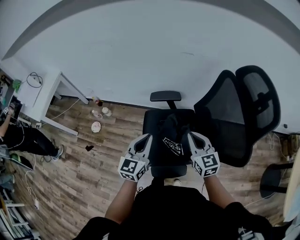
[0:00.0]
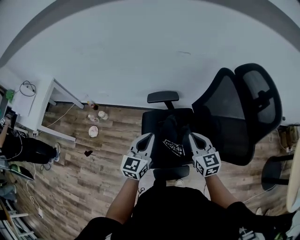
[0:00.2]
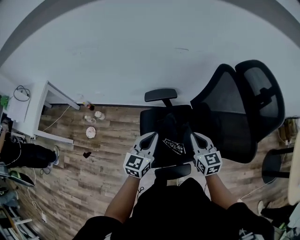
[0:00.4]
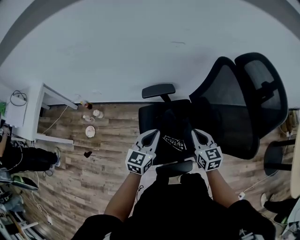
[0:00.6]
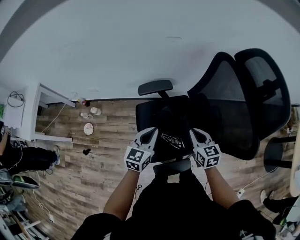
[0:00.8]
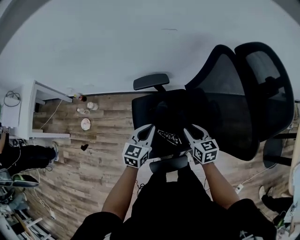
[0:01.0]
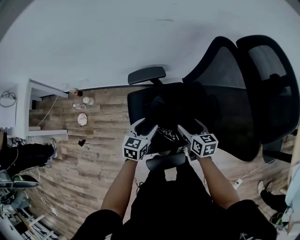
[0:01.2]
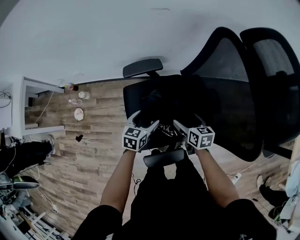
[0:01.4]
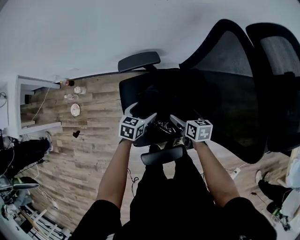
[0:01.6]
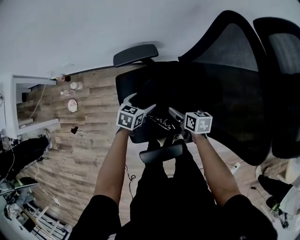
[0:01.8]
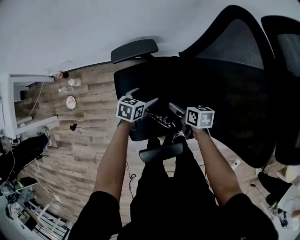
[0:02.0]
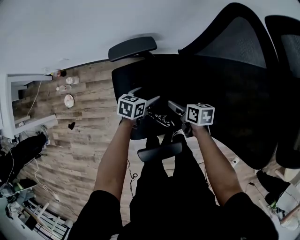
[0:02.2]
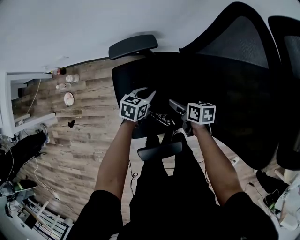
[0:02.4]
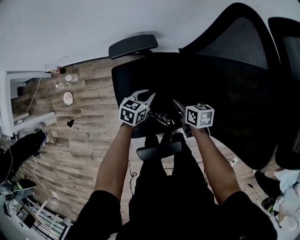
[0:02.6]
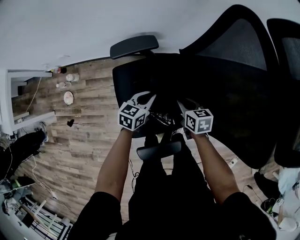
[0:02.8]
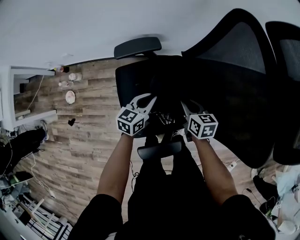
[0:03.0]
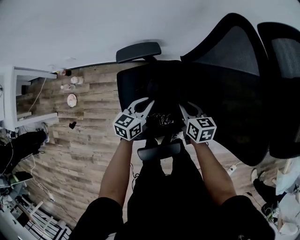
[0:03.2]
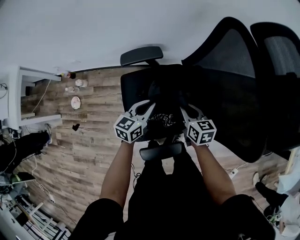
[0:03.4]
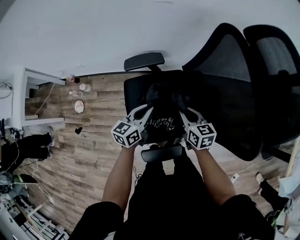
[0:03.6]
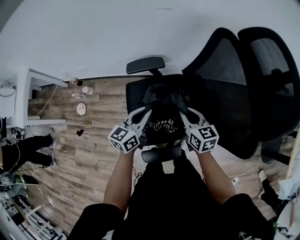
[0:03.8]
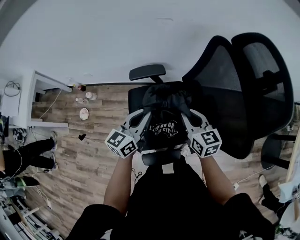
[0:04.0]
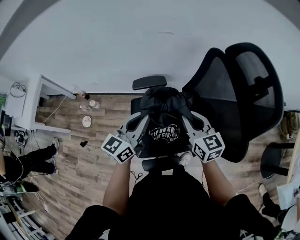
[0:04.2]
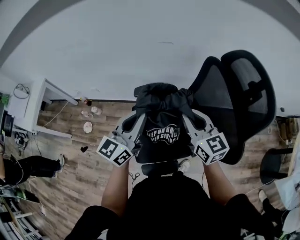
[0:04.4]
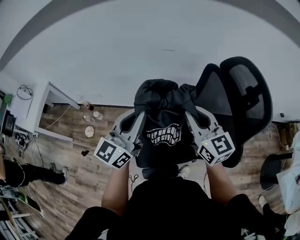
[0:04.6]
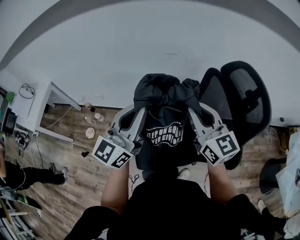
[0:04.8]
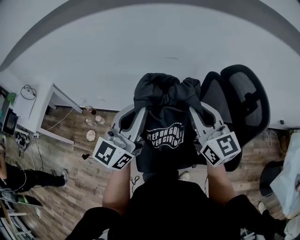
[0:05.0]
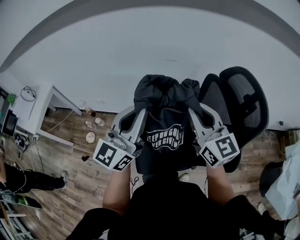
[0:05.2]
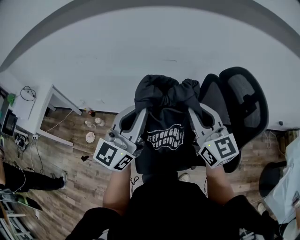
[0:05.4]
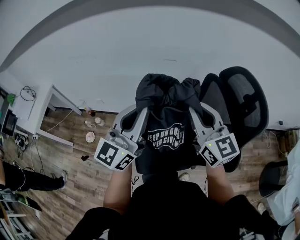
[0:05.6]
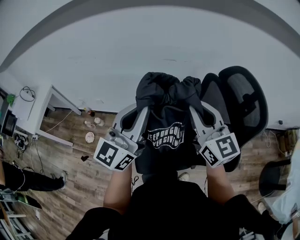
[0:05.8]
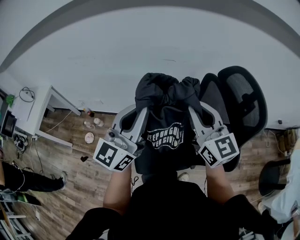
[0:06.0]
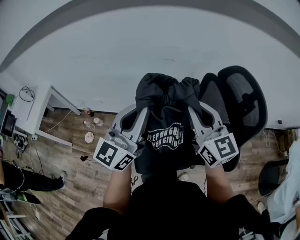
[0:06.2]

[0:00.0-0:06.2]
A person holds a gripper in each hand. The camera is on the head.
0:00.0 to 0:01.6: The right gripper heads downward, covering about 25 cm, rotates some 50 degrees, and opens up. Meanwhile the left gripper shifts about 30 cm downward and forward, points its fingers about 30 degrees further downward, and opens its fingers.
0:01.6 to 0:03.2: The left gripper ends up some 5 cm from where it was, turns by approximately 20 degrees, and closes, while the right gripper closes.
0:03.2 to 0:04.6: Both grippers move upward, about 35 cm. The right gripper angles its fingers upward, by about 40 degrees. The left gripper points its fingers approximately 30 degrees further upward.
0:04.6 to 0:06.2: Both grippers move upward, about 5 cm.

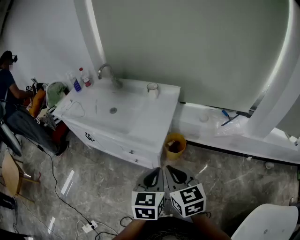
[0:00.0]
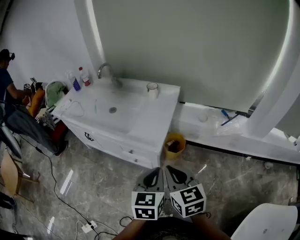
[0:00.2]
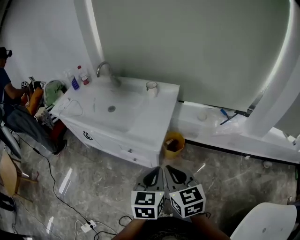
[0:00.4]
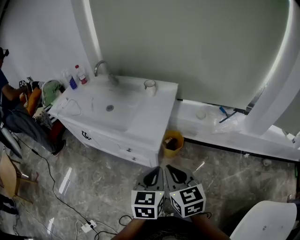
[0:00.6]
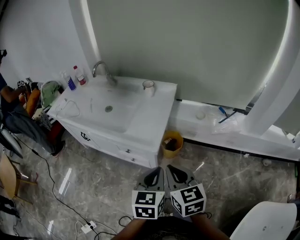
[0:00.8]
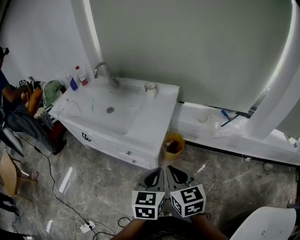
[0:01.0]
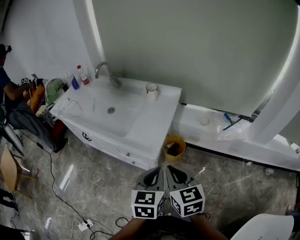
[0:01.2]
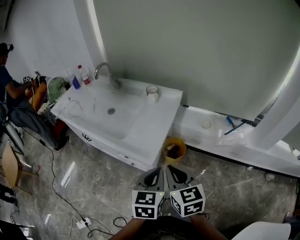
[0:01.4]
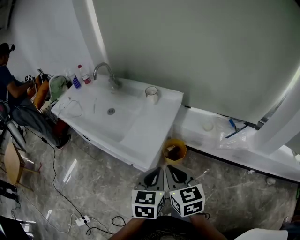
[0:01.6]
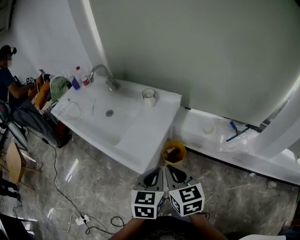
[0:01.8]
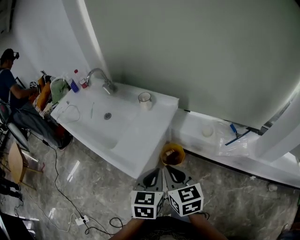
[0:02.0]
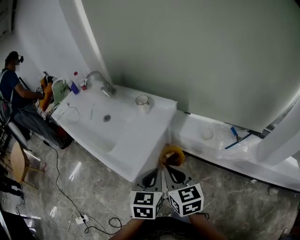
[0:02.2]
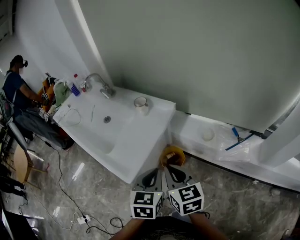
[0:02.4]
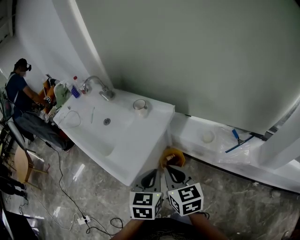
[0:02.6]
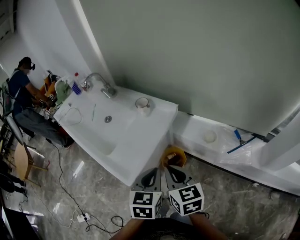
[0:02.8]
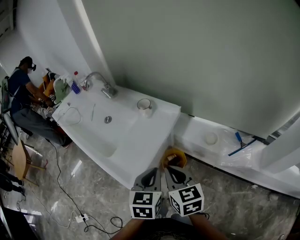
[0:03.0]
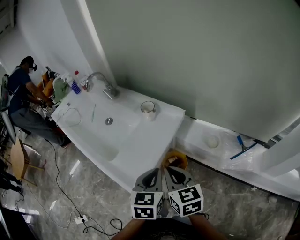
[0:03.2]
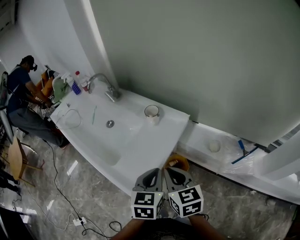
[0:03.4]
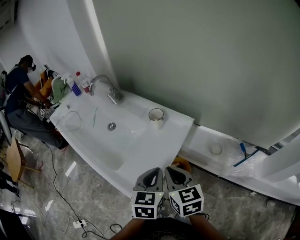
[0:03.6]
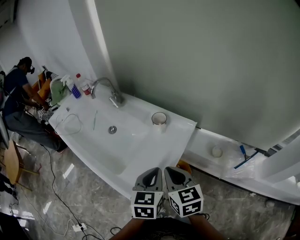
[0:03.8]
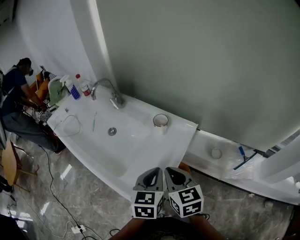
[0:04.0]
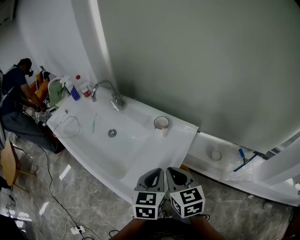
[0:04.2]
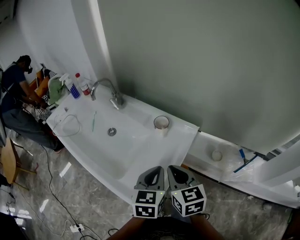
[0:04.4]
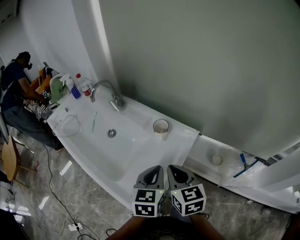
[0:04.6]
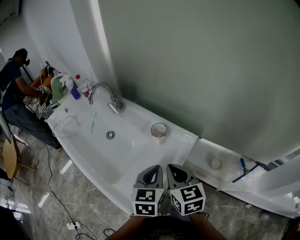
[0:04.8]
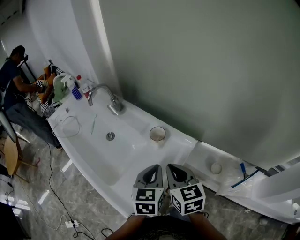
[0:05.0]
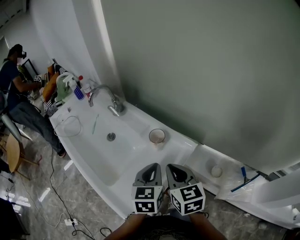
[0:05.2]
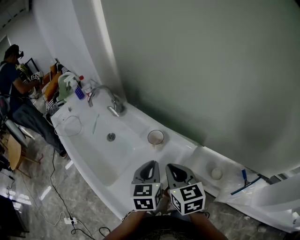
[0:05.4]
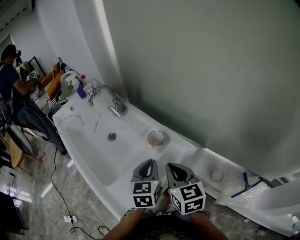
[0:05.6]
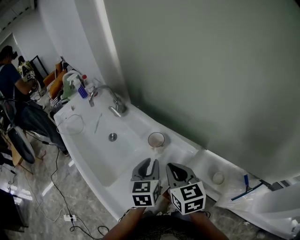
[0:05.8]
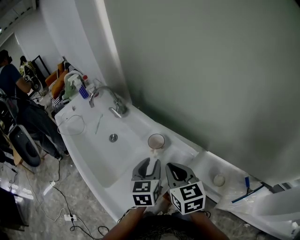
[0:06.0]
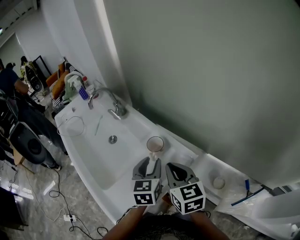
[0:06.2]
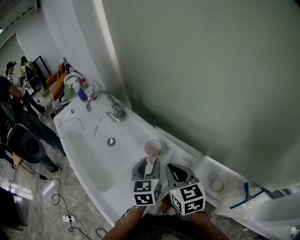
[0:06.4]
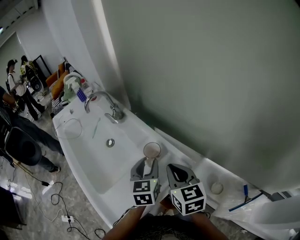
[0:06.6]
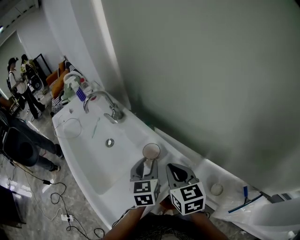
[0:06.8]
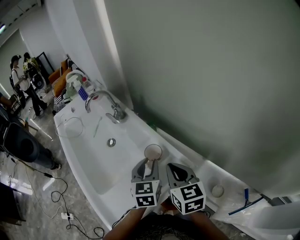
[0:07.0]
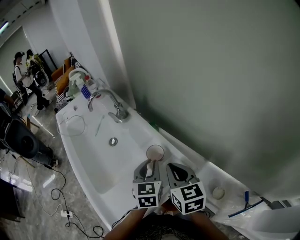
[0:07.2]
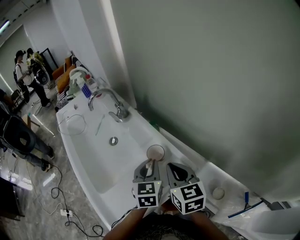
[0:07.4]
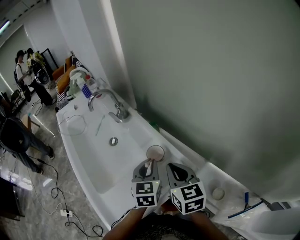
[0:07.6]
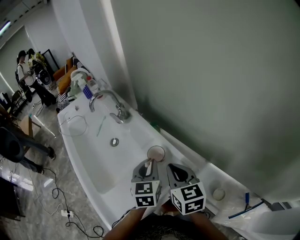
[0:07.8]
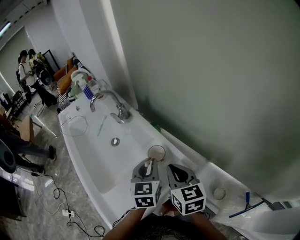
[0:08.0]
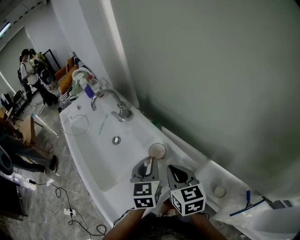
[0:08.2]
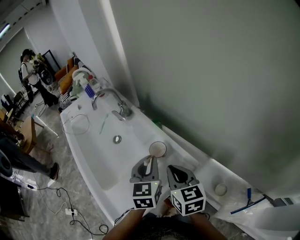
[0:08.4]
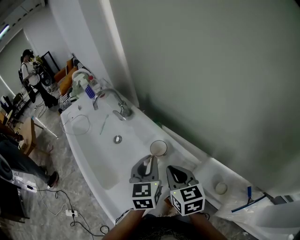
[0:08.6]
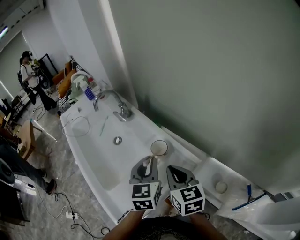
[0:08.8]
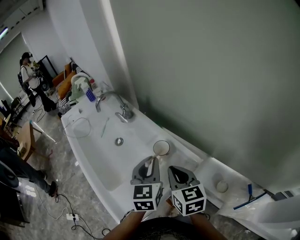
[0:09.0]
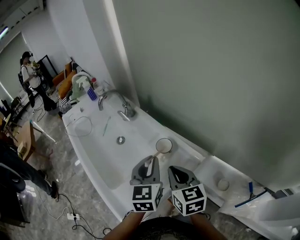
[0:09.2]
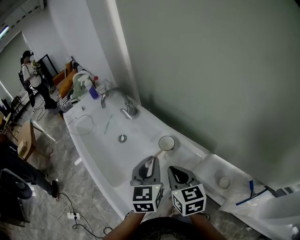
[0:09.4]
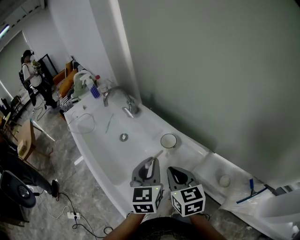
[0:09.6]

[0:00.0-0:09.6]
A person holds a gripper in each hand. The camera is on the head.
0:00.0 to 0:01.6: Both grippers travel together forward and to the right, approximately 10 cm.
0:01.6 to 0:03.2: The grippers both shift forward and to the right by about 15 cm.
0:03.2 to 0:04.8: The two grippers go some 15 cm forward.
0:04.8 to 0:06.4: The right gripper goes about 10 cm forward and to the right. The left gripper goes about 10 cm forward, and opens up.
0:06.4 to 0:08.0: The left gripper closes up.
0:08.0 to 0:09.6: The left gripper is displaced backward, upward and to the left by about 10 cm. The right gripper shifts some 10 cm to the left and backward.

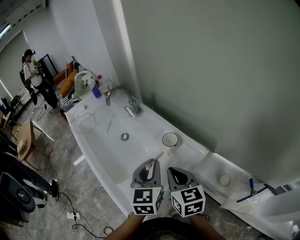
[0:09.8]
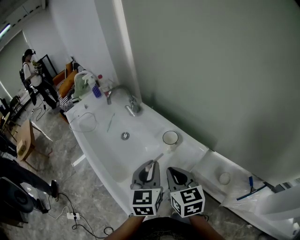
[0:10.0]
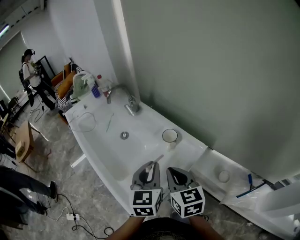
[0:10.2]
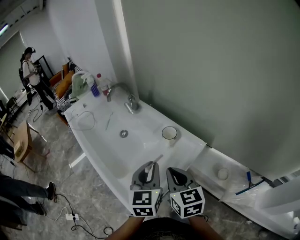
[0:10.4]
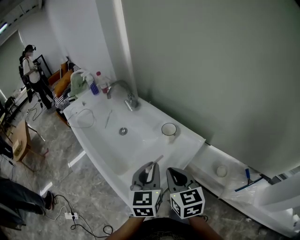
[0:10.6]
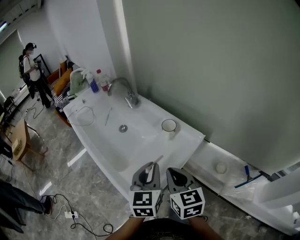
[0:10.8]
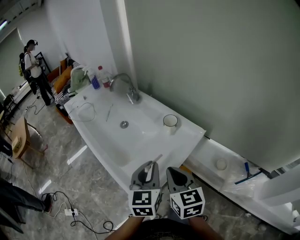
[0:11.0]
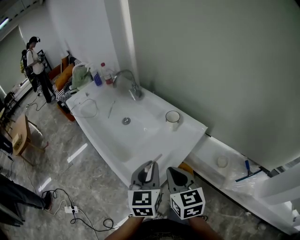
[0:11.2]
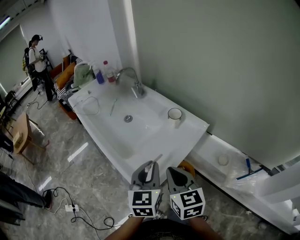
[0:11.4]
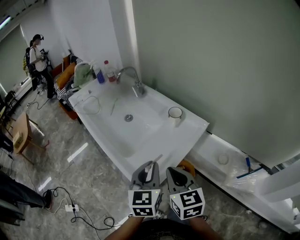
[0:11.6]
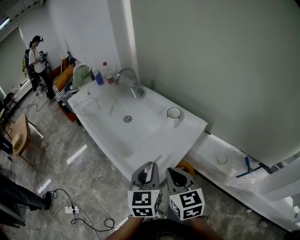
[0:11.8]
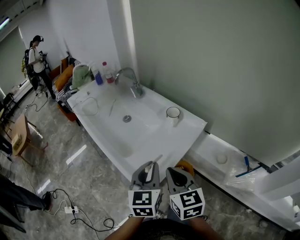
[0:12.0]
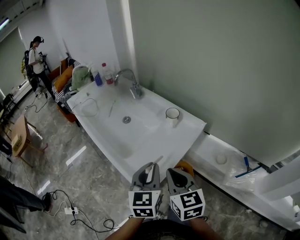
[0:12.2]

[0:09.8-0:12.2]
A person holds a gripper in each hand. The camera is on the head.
0:09.8 to 0:11.0: Both grippers move backward, roughly 10 cm.
0:11.0 to 0:12.2: Both grippers travel together backward, roughly 5 cm.

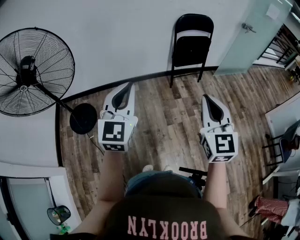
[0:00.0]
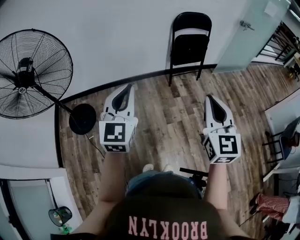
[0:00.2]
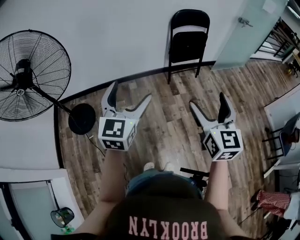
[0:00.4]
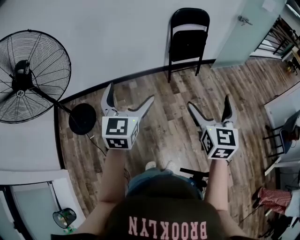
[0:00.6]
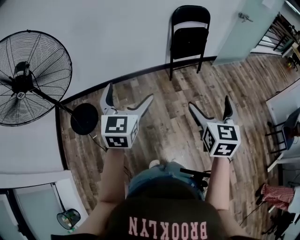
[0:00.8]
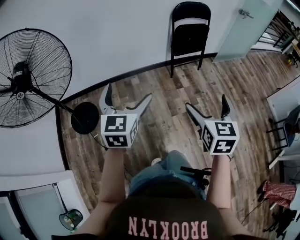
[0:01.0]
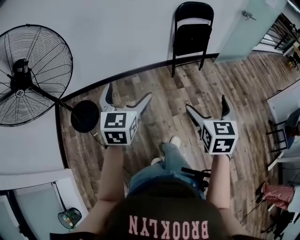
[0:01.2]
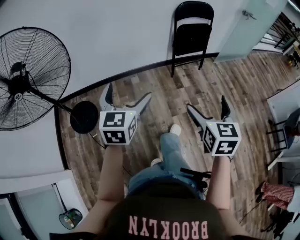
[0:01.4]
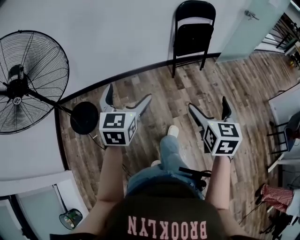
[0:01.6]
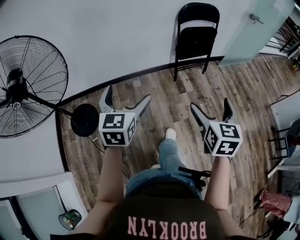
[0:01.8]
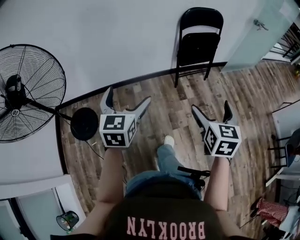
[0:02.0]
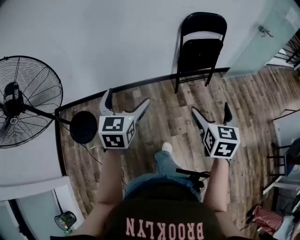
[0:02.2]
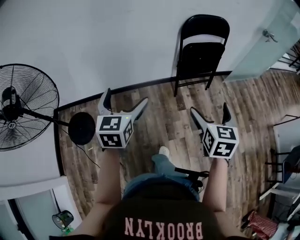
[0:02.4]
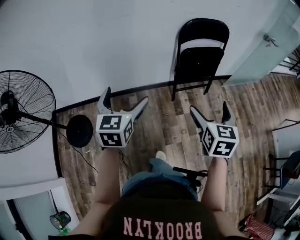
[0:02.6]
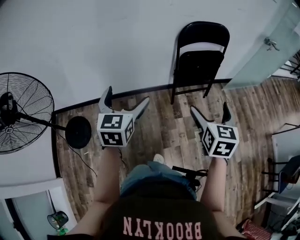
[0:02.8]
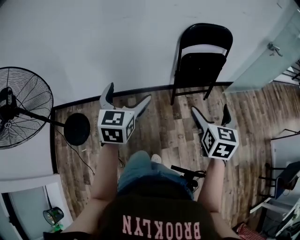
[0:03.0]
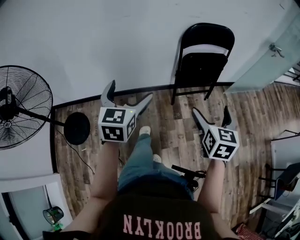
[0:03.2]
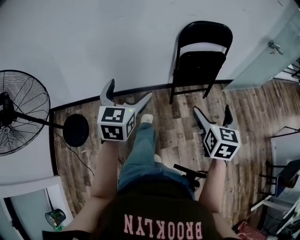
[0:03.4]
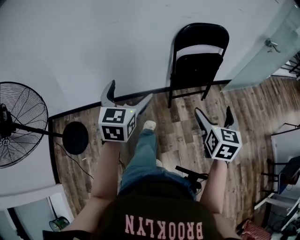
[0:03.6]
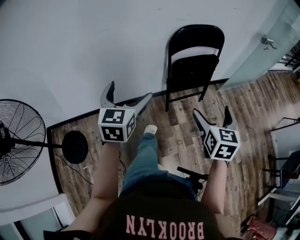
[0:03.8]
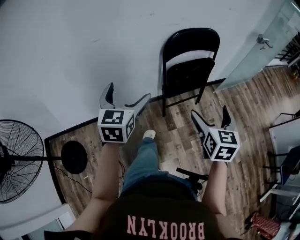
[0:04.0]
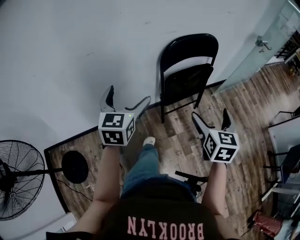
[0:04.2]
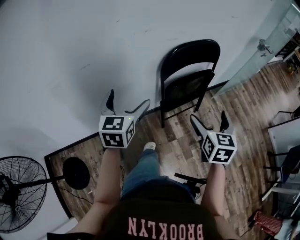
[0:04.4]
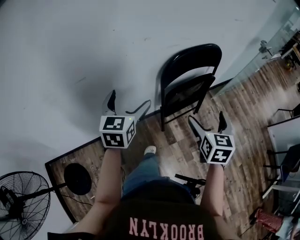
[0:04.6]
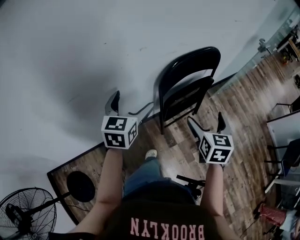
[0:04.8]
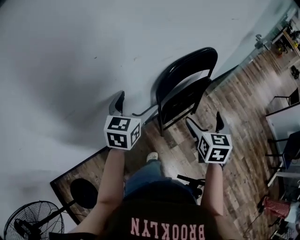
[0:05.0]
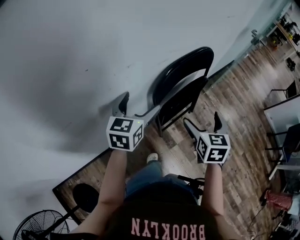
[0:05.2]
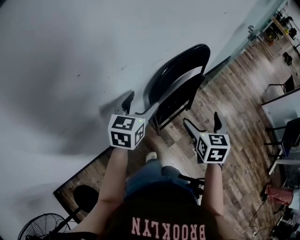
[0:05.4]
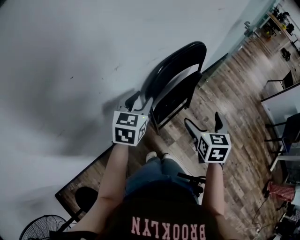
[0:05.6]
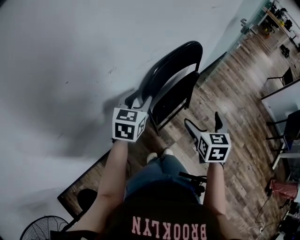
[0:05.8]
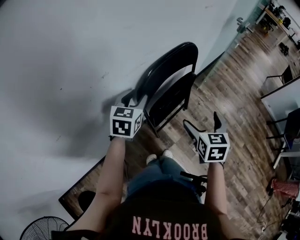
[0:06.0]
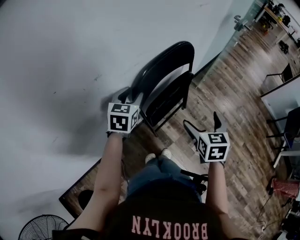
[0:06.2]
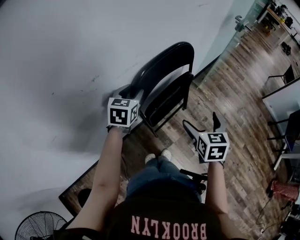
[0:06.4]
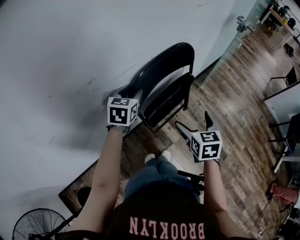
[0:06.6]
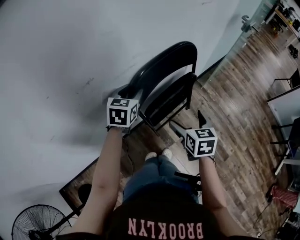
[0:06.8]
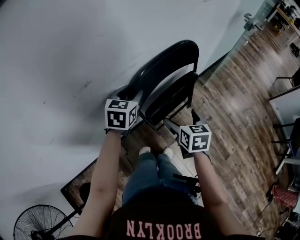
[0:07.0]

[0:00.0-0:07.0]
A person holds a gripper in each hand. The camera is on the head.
0:00.0 to 0:01.4: The right gripper goes about 10 cm downward, rotates some 30 degrees, and opens. Meanwhile the left gripper heads downward and to the left, covering roughly 10 cm, and opens.
0:01.4 to 0:02.8: Both grippers move forward, some 35 cm.
0:02.8 to 0:04.2: Both grippers travel together forward, some 25 cm.
0:04.2 to 0:05.6: The left gripper shifts roughly 25 cm forward, turns by roughly 30 degrees, and closes. Meanwhile the right gripper moves forward, approximately 20 cm.
0:05.6 to 0:07.0: The left gripper heads forward, covering about 10 cm; the right gripper travels downward and forward by roughly 10 cm.
